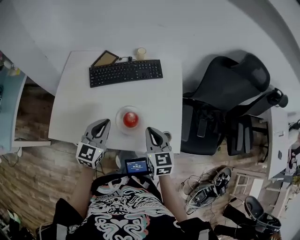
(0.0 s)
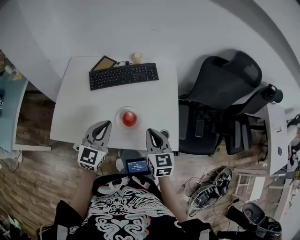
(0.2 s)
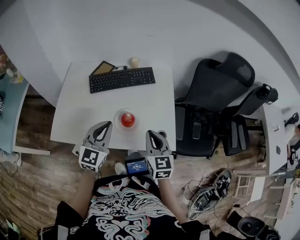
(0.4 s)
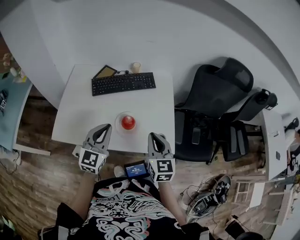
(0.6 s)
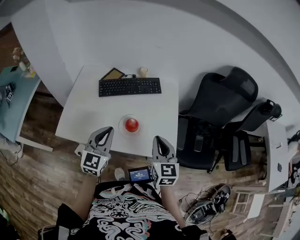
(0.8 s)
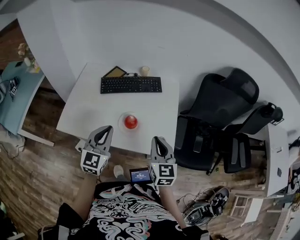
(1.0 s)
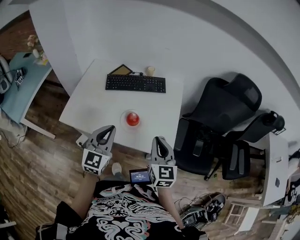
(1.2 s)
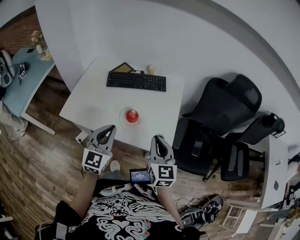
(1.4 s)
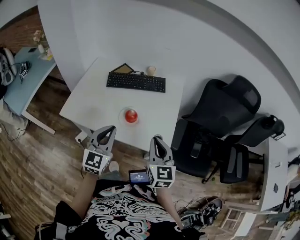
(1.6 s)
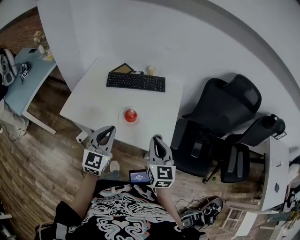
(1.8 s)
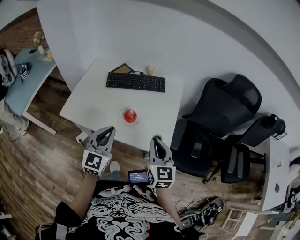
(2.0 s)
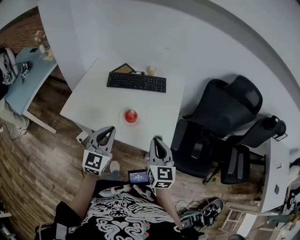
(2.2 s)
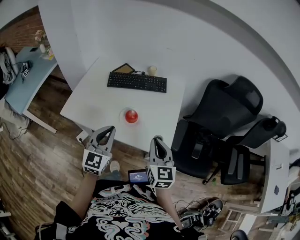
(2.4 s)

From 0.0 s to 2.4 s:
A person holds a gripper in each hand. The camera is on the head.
From 0.0 s to 1.2 s: The right gripper shifts some 15 cm upward, backward and to the right. The left gripper heads backward, upward and to the right, covering roughly 15 cm.
From 1.2 s to 2.4 s: The grippers move only a little.

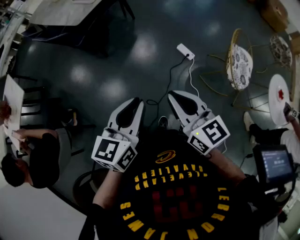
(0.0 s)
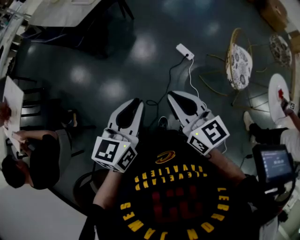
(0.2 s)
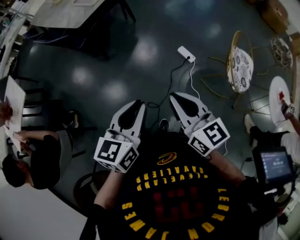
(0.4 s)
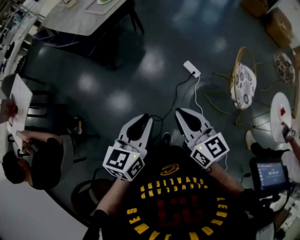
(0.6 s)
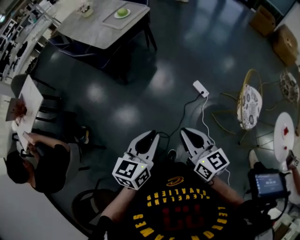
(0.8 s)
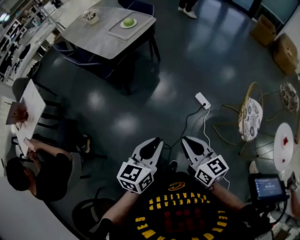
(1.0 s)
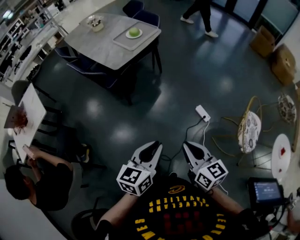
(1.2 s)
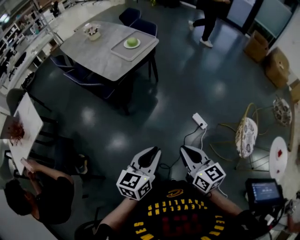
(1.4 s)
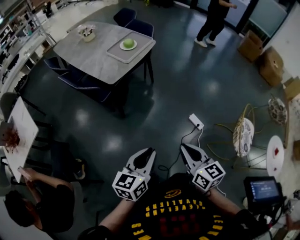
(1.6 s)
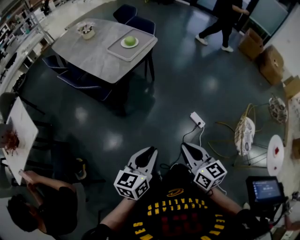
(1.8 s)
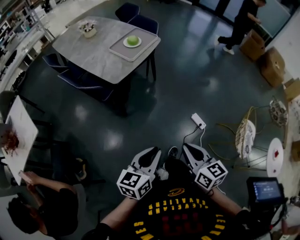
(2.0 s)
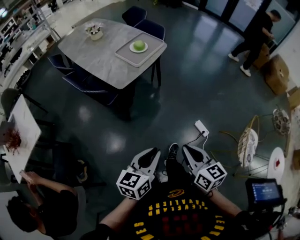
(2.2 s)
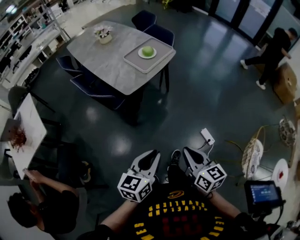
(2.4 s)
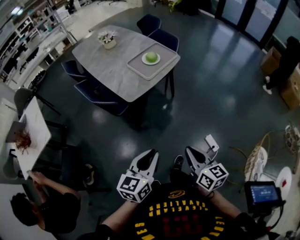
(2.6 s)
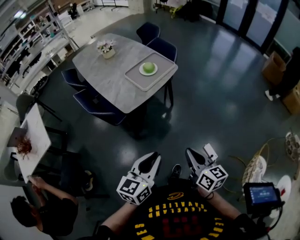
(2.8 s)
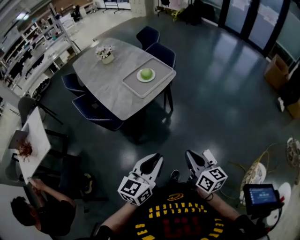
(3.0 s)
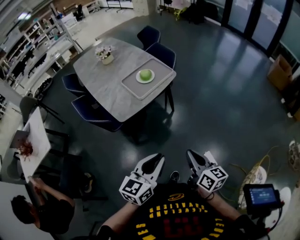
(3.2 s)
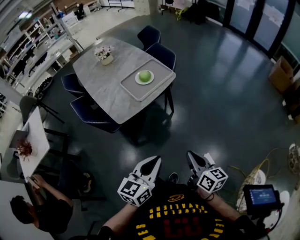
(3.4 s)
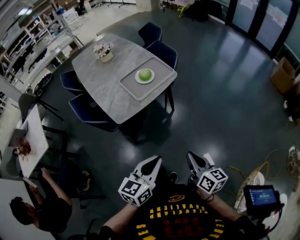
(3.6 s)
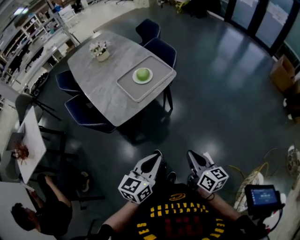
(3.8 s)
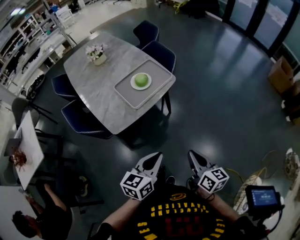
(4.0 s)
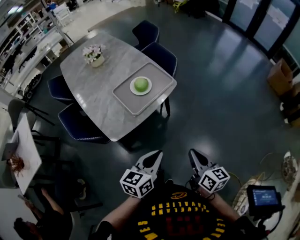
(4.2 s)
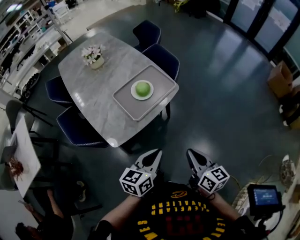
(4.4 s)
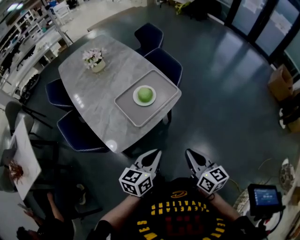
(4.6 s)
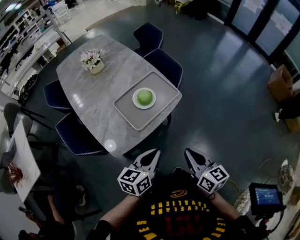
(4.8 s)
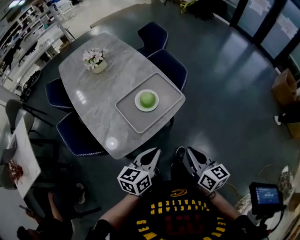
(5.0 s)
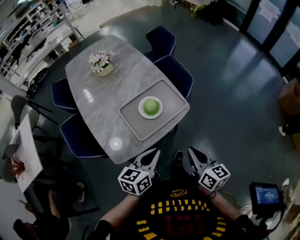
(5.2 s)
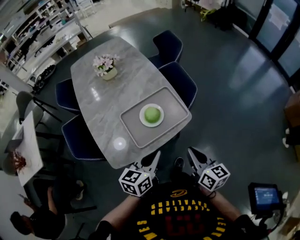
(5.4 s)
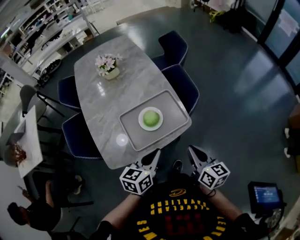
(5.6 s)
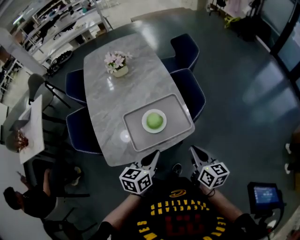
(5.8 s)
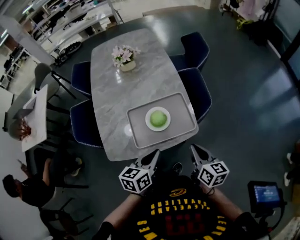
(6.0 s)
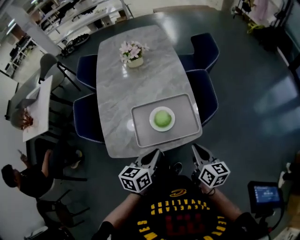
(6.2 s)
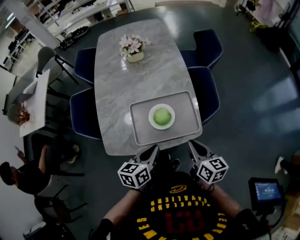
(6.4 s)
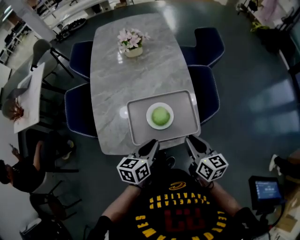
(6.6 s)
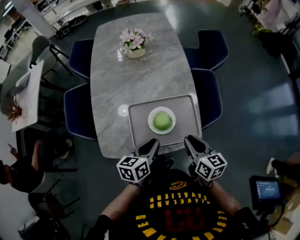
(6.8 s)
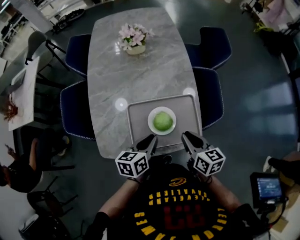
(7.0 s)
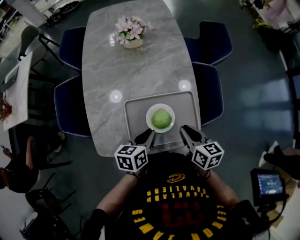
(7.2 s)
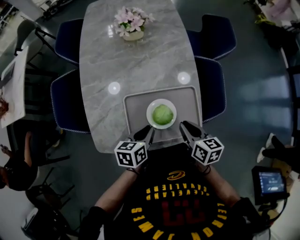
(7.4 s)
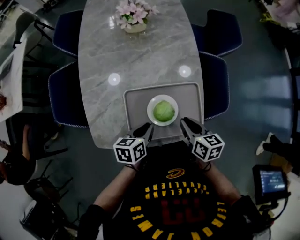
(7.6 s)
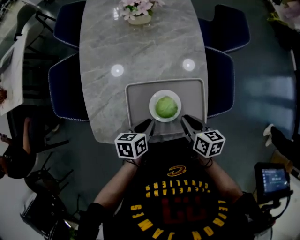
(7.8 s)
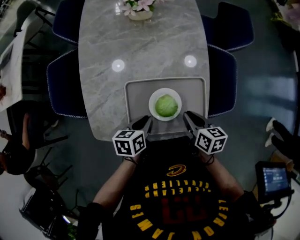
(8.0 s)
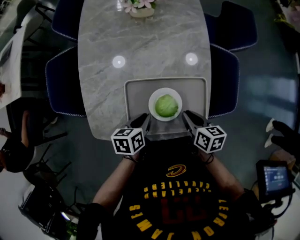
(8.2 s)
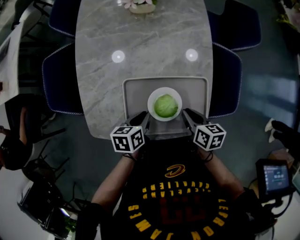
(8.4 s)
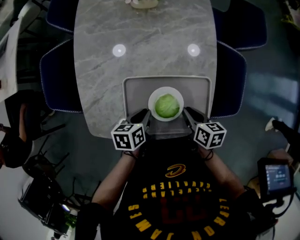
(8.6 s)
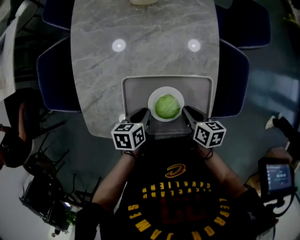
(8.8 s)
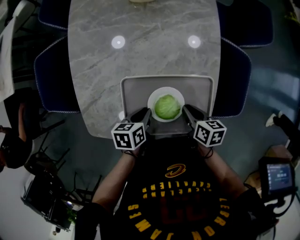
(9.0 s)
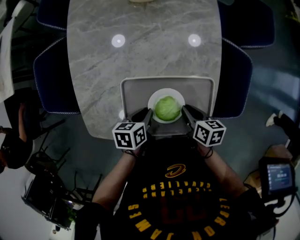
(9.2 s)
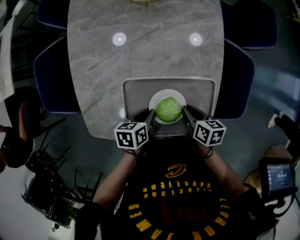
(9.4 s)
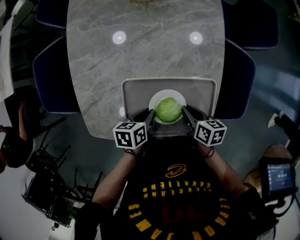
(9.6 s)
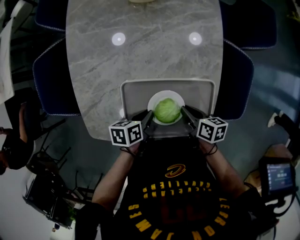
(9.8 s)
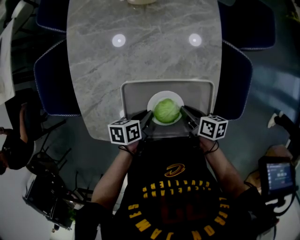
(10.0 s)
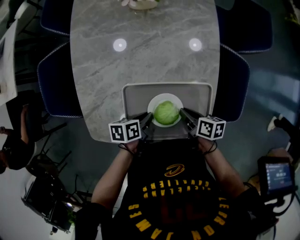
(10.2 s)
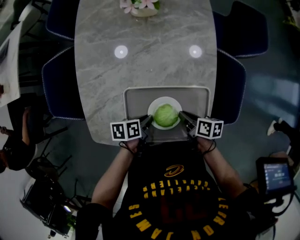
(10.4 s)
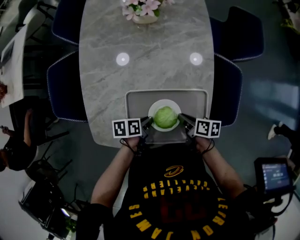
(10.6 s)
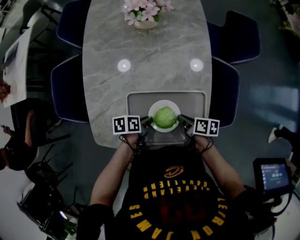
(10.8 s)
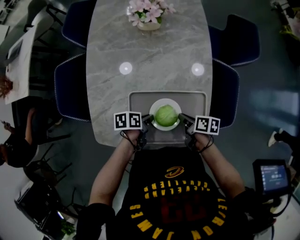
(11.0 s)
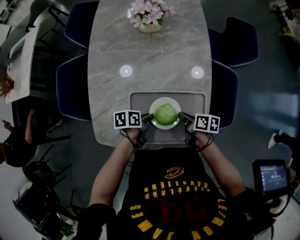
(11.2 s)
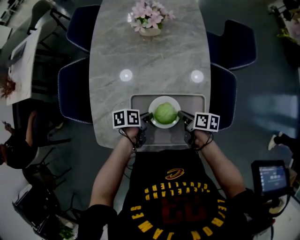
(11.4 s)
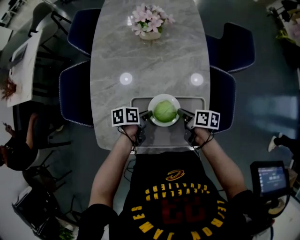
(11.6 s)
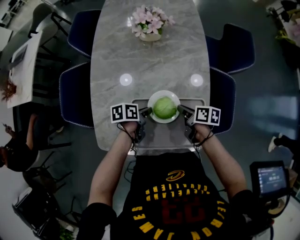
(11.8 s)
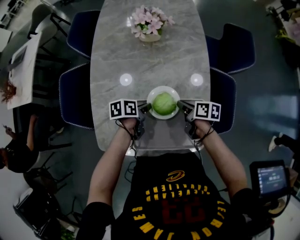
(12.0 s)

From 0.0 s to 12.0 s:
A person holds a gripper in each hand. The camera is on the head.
From 0.0 s to 1.6 s: The two grippers go about 20 cm forward and to the left.
From 1.6 s to 3.0 s: Both grippers travel together forward, roughly 25 cm.
From 3.0 s to 4.4 s: The two grippers go about 25 cm forward.
From 4.4 s to 6.0 s: The right gripper changes place by about 35 cm, and rotates roughly 20 degrees. Meanwhile the left gripper changes place by some 25 cm, and rotates roughly 30 degrees.
From 6.0 s to 7.6 s: The two grippers go roughly 20 cm forward, downward and to the left. The left gripper swivels about 20 degrees, while the right gripper rotates about 20 degrees.
From 7.6 s to 9.0 s: The two grippers go roughly 10 cm downward.
From 9.0 s to 10.4 s: The grippers make only small movements.
From 10.4 s to 12.0 s: The right gripper shifts by some 10 cm. The left gripper moves approximately 10 cm.

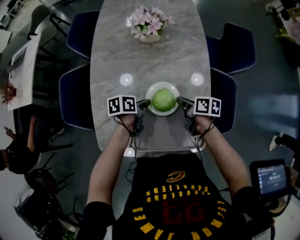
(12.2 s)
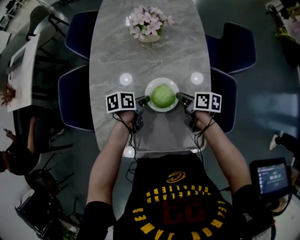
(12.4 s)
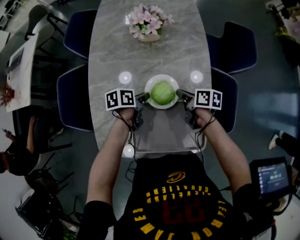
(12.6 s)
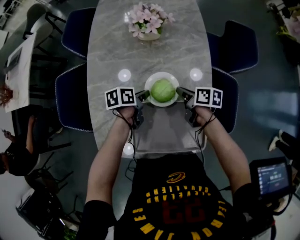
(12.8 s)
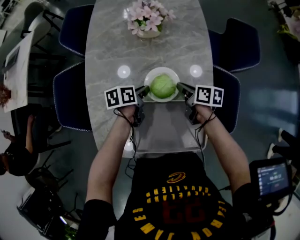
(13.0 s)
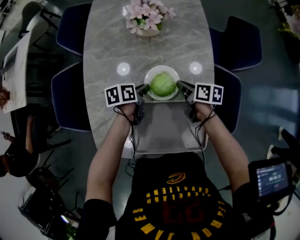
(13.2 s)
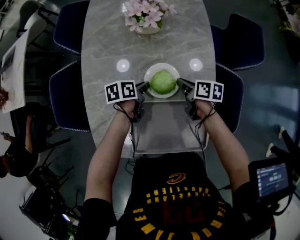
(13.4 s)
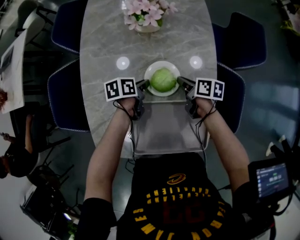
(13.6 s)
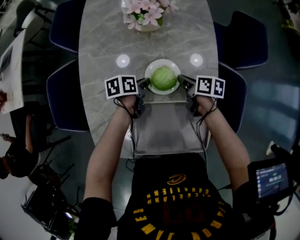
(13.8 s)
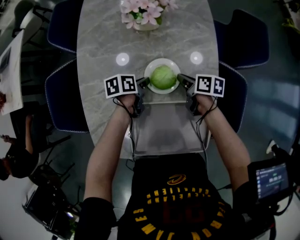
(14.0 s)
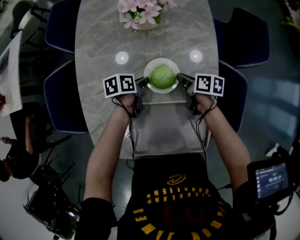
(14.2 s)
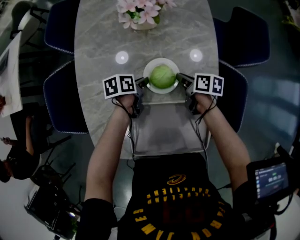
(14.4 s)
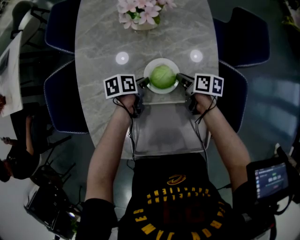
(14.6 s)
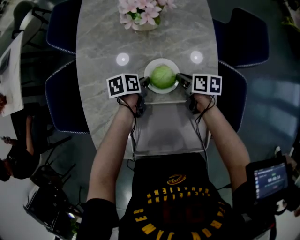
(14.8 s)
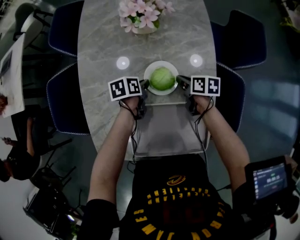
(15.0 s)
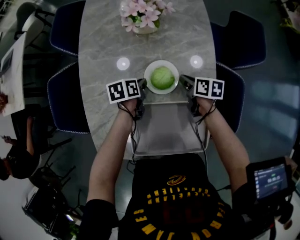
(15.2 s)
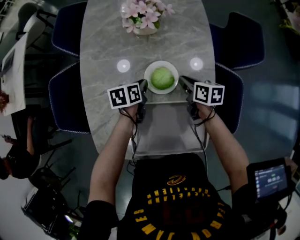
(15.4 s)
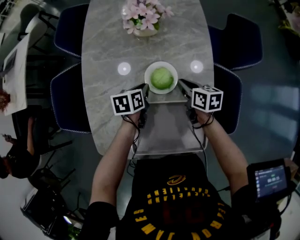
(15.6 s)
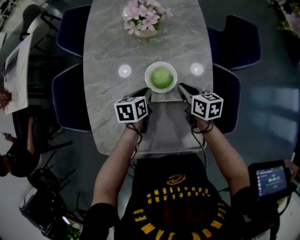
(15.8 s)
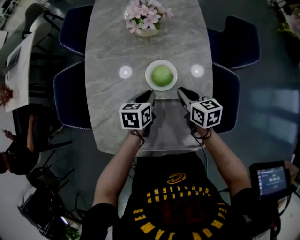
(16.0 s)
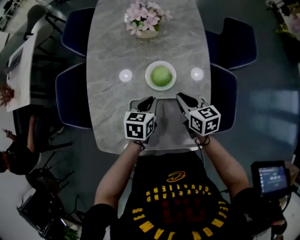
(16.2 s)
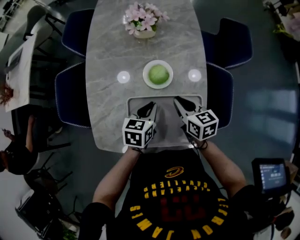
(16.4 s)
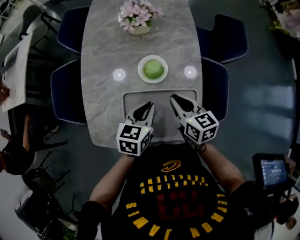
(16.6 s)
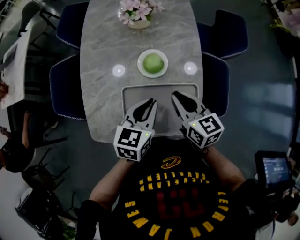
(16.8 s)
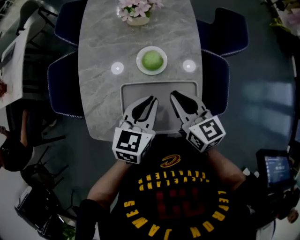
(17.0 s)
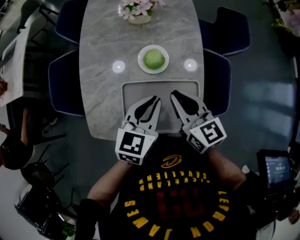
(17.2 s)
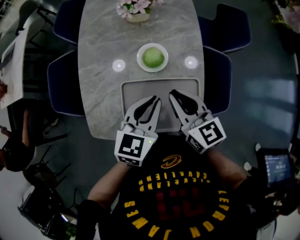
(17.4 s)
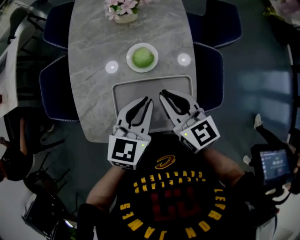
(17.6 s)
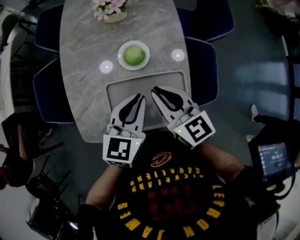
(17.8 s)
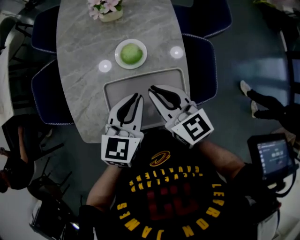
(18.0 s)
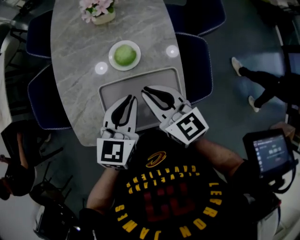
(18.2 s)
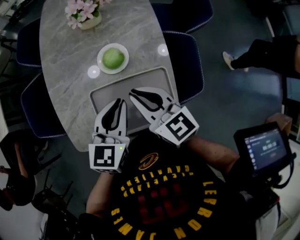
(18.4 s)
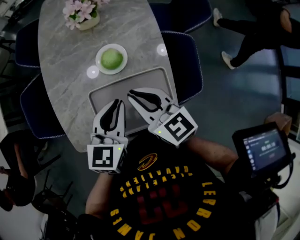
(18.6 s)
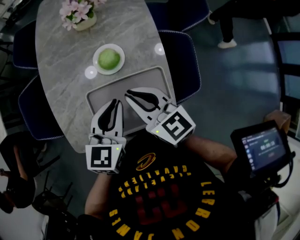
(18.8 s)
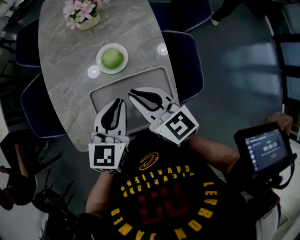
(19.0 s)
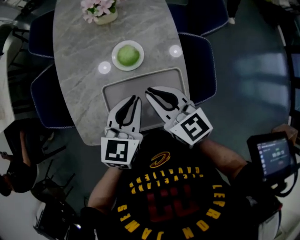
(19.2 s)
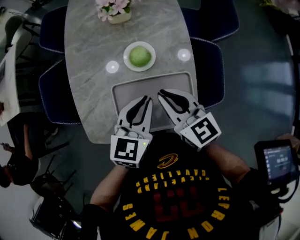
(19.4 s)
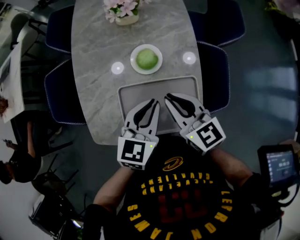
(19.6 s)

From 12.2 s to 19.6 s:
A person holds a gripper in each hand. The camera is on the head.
From 12.2 s to 13.6 s: The two grippers go roughly 10 cm forward.
From 13.6 s to 15.2 s: The grippers move only a little.
From 15.2 s to 16.6 s: Both grippers move upward and backward, about 25 cm. The left gripper changes its angle by approximately 30 degrees; the right gripper swivels some 30 degrees.
From 16.6 s to 18.2 s: The grippers both shift upward by roughly 10 cm.
From 18.2 s to 19.6 s: Both grippers stay about where they are.

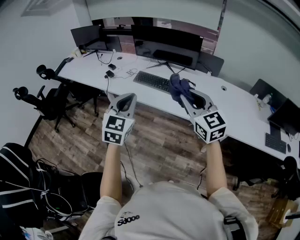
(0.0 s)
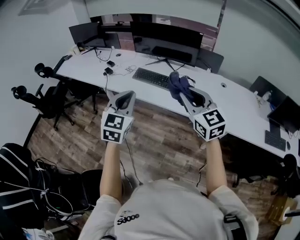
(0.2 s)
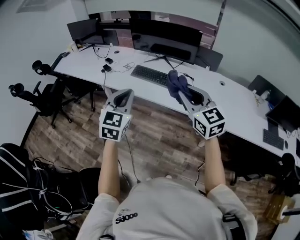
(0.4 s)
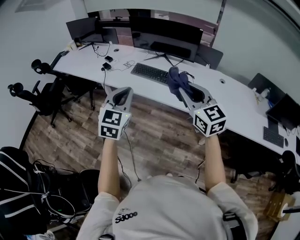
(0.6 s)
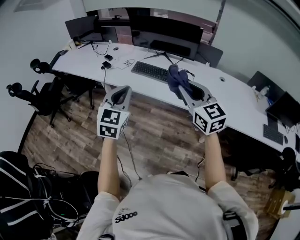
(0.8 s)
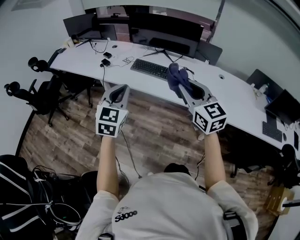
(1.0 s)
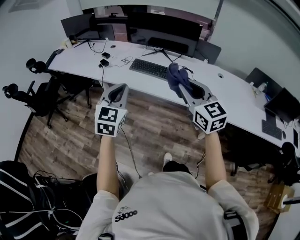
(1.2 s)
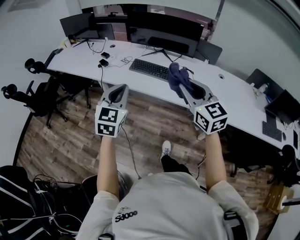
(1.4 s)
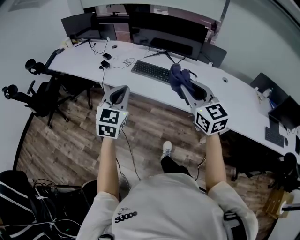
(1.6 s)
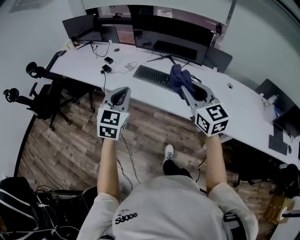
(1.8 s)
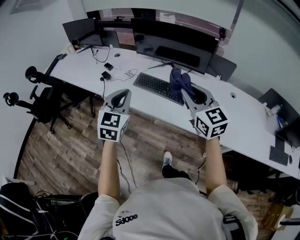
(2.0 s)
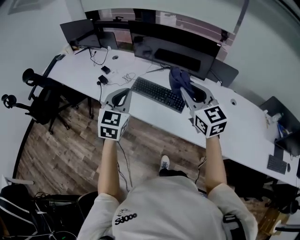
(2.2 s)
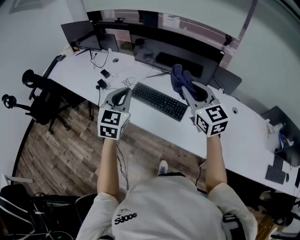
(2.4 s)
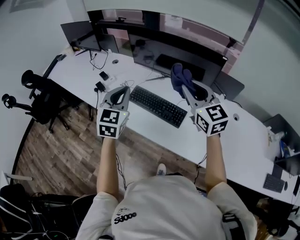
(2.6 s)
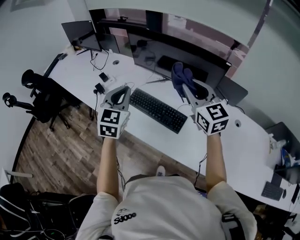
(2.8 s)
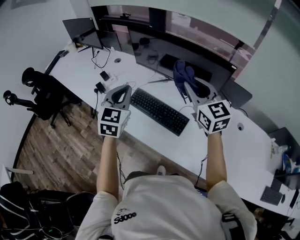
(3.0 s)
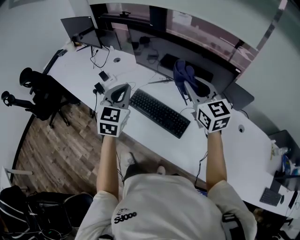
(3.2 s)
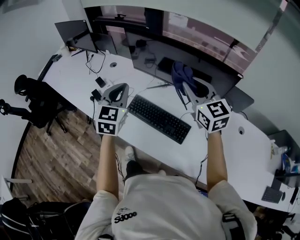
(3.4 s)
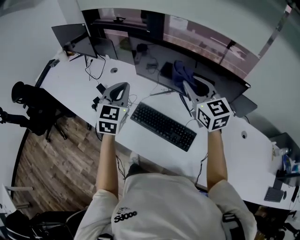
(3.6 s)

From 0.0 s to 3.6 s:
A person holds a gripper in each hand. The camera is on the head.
From 0.0 s to 1.8 s: The left gripper shifts roughly 15 cm forward and to the left. The right gripper heads forward, covering roughly 15 cm.
From 1.8 s to 3.6 s: Both grippers are carried forward, approximately 50 cm.
